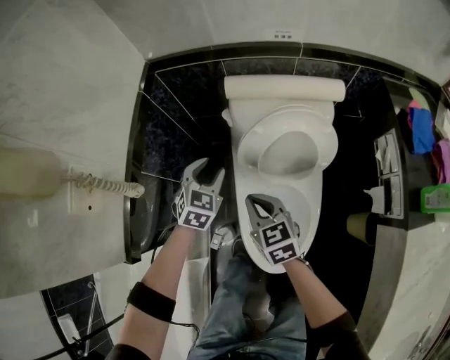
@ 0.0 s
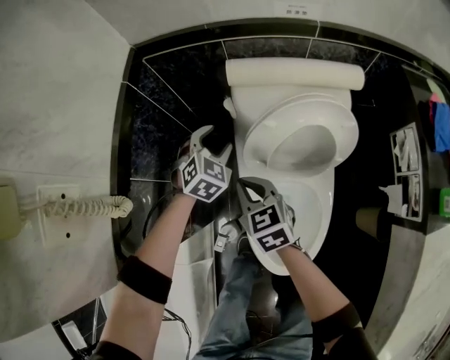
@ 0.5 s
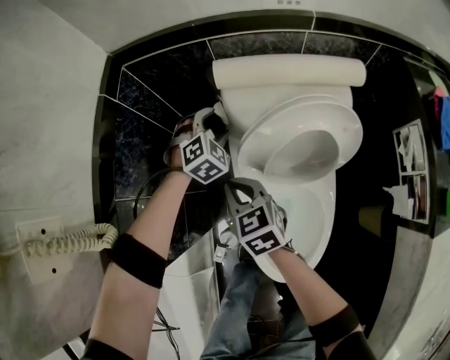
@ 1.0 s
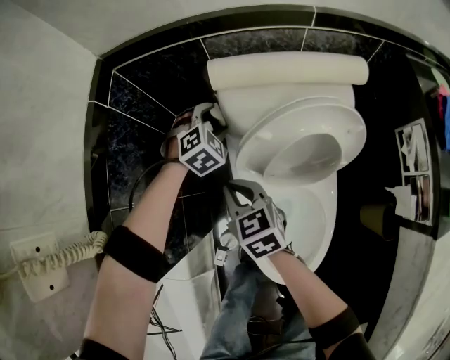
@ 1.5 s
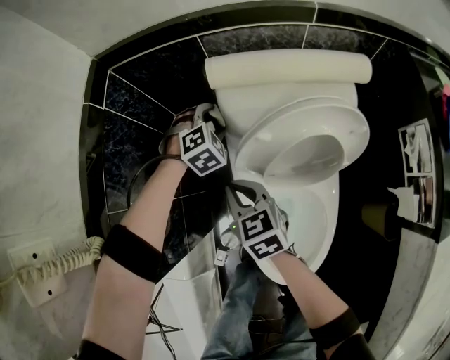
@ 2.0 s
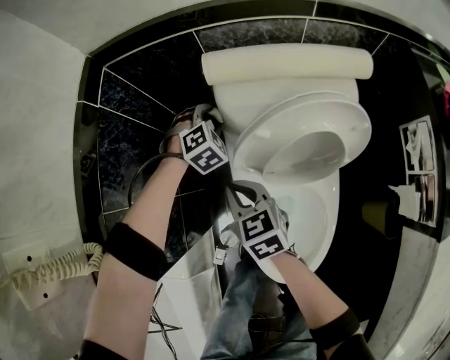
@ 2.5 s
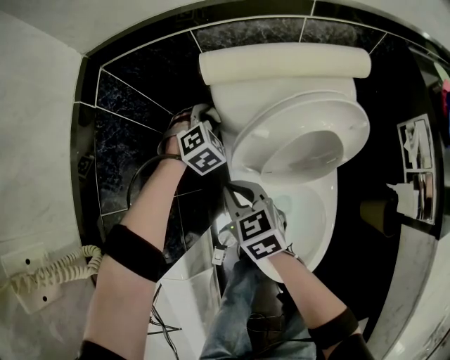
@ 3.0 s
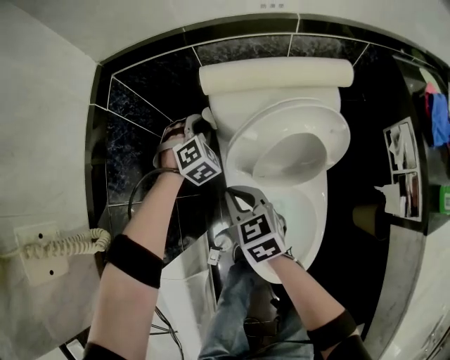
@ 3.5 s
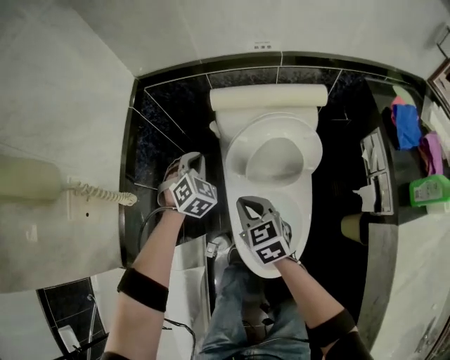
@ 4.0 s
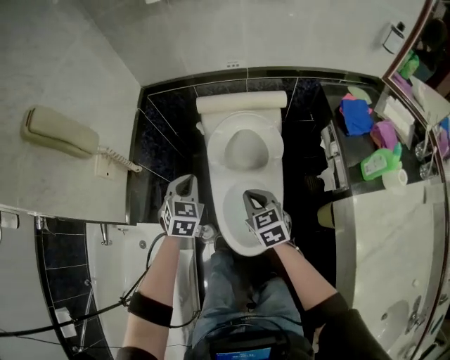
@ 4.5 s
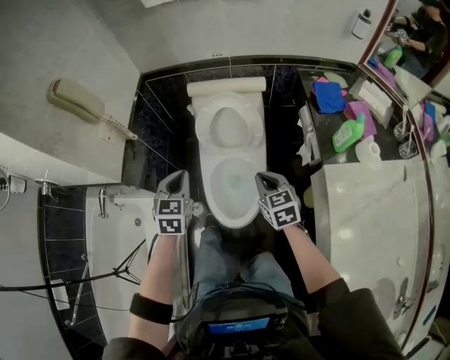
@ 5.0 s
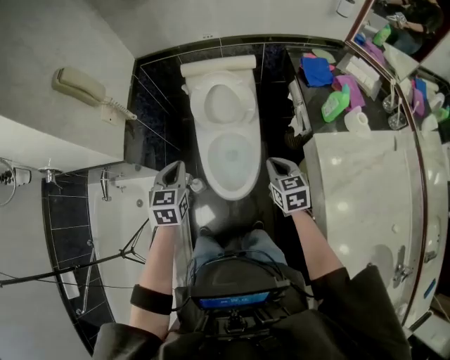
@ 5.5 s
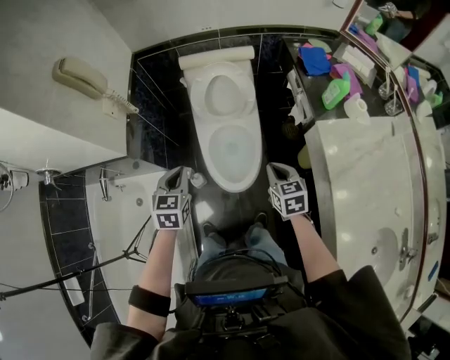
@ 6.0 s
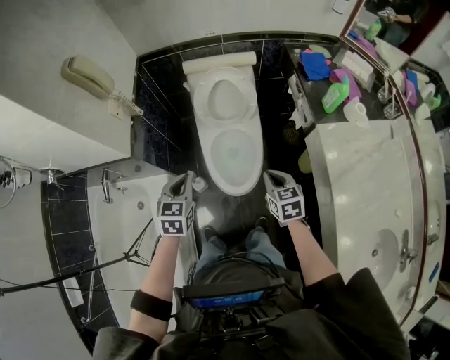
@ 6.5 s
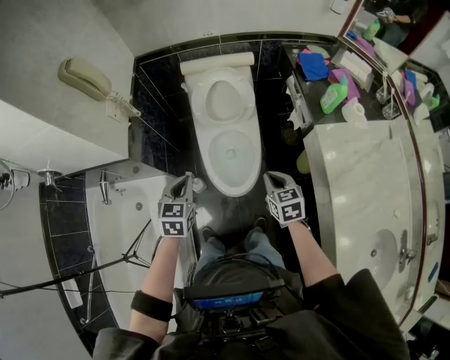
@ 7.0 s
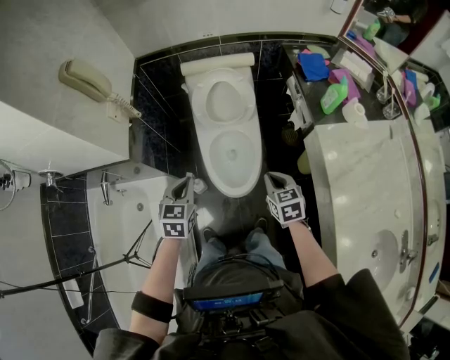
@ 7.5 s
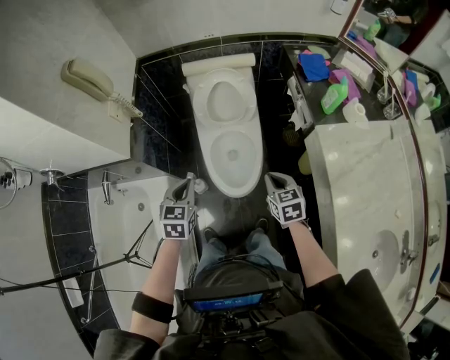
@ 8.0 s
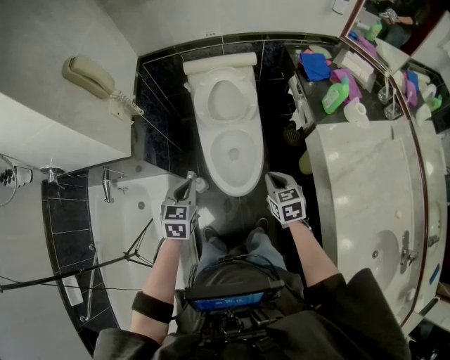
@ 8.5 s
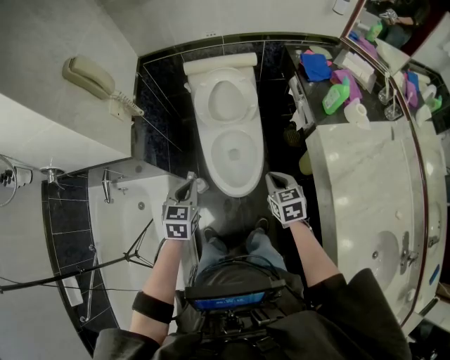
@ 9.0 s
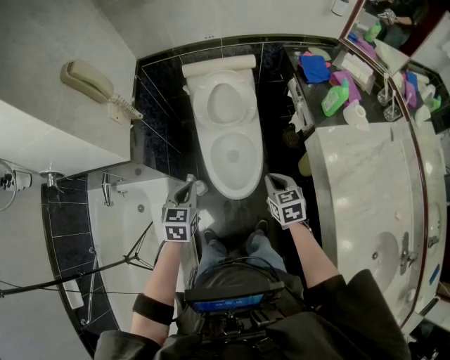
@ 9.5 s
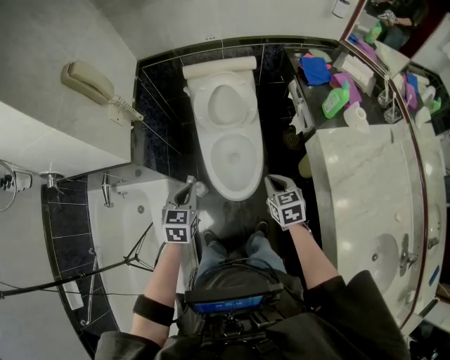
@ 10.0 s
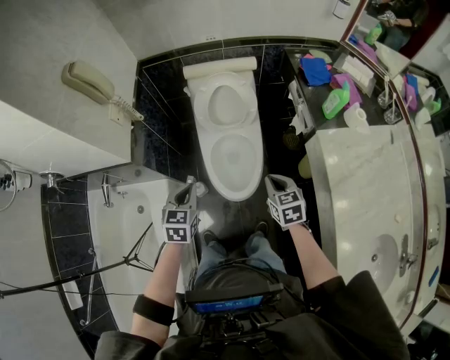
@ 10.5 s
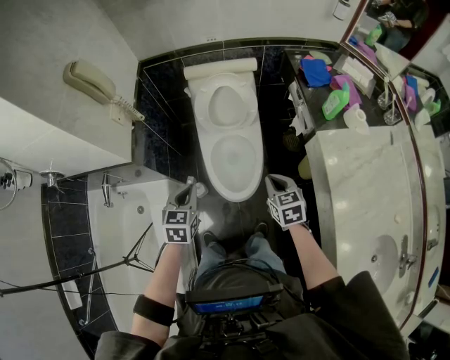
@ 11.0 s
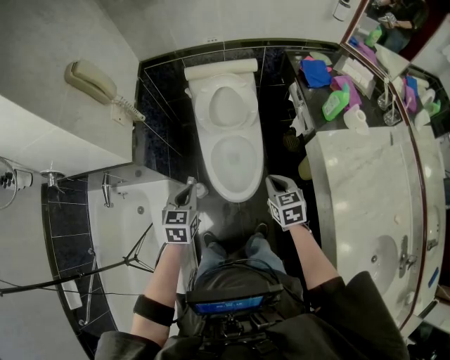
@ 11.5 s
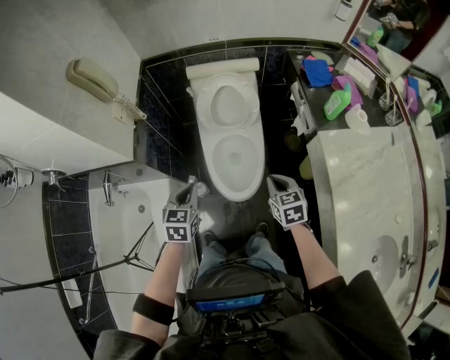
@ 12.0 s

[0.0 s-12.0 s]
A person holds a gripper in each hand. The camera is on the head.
0.0 to 2.0 s: The right gripper heads forward and downward, covering roughly 15 cm; the left gripper shifts about 25 cm forward and downward, and rotates roughly 40 degrees.
2.0 to 4.0 s: Both grippers travel together upward and backward, roughly 15 cm. The left gripper swivels roughly 20 degrees, and closes up.
4.0 to 6.0 s: The left gripper shifts about 50 cm backward and upward, and swivels roughly 40 degrees; the right gripper heads backward, to the right and upward, covering some 40 cm.
6.0 to 8.0 s: There are only small adjustments of the grippers.
8.0 to 10.0 s: Both grippers stay put.
10.0 to 12.0 s: Both grippers stay about where they are.

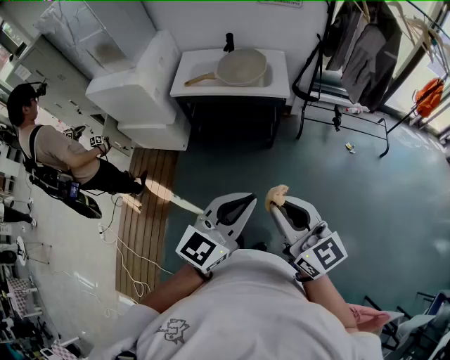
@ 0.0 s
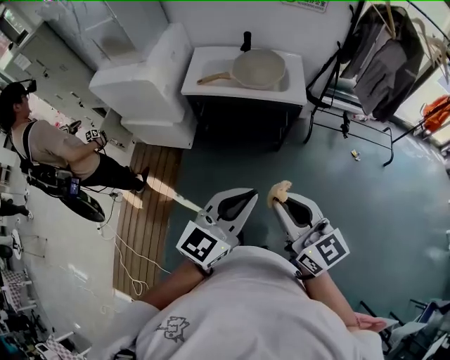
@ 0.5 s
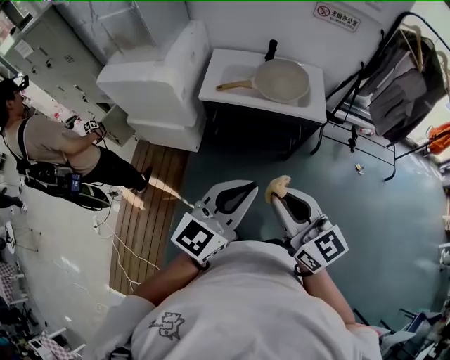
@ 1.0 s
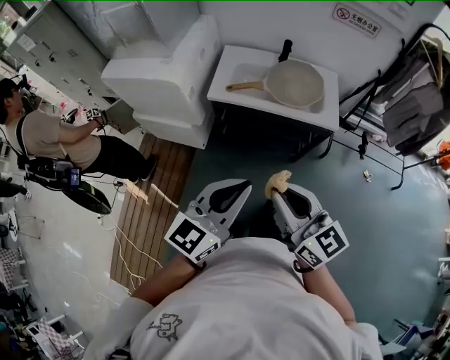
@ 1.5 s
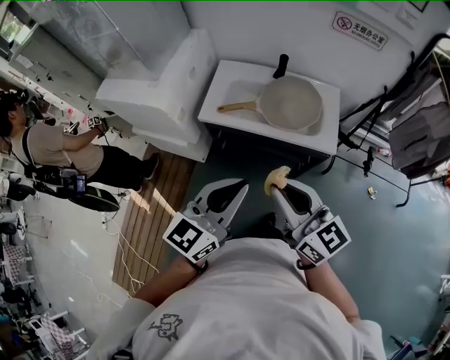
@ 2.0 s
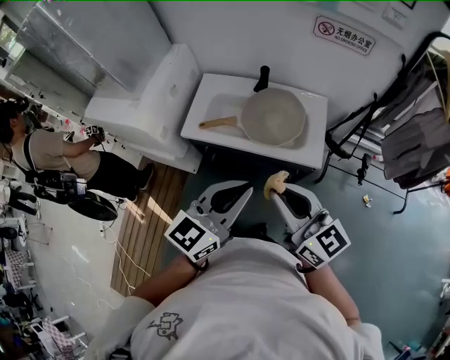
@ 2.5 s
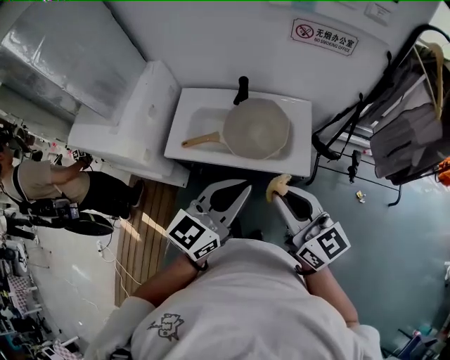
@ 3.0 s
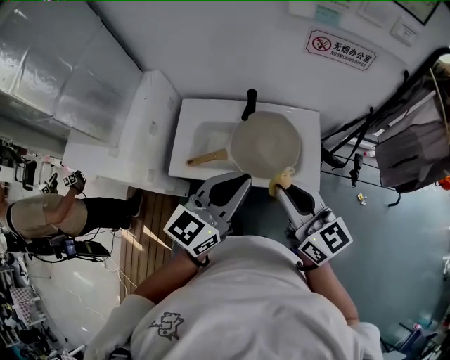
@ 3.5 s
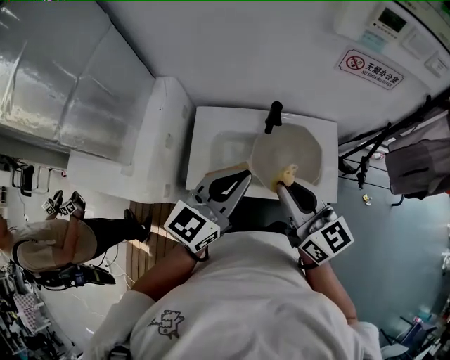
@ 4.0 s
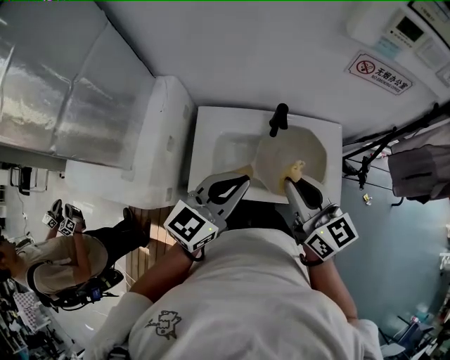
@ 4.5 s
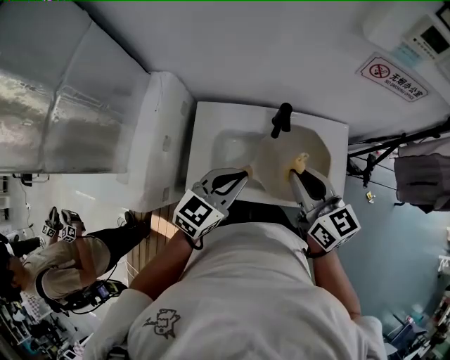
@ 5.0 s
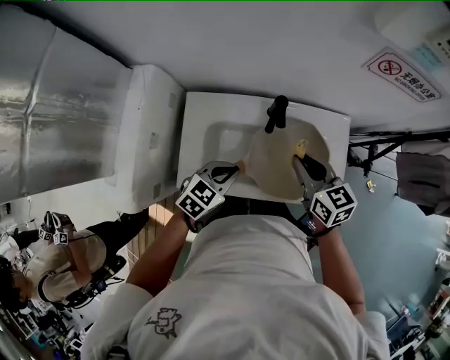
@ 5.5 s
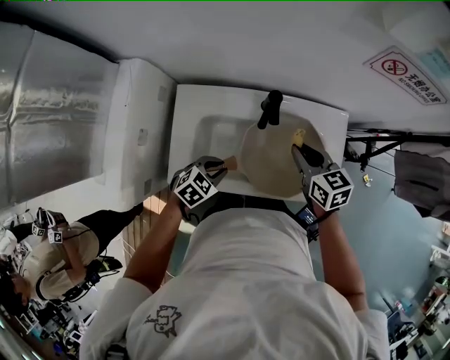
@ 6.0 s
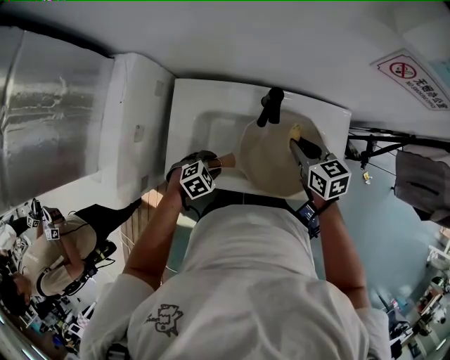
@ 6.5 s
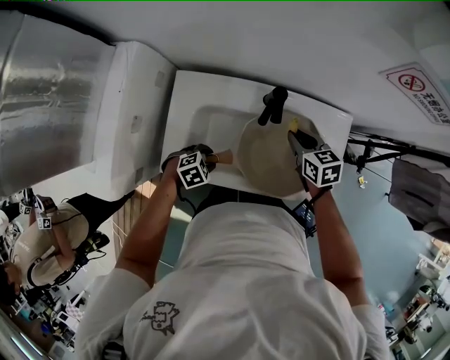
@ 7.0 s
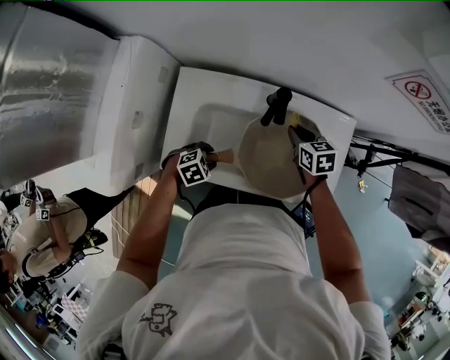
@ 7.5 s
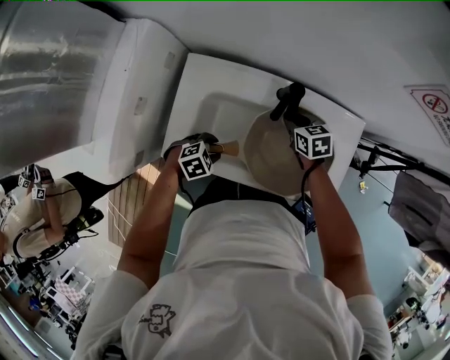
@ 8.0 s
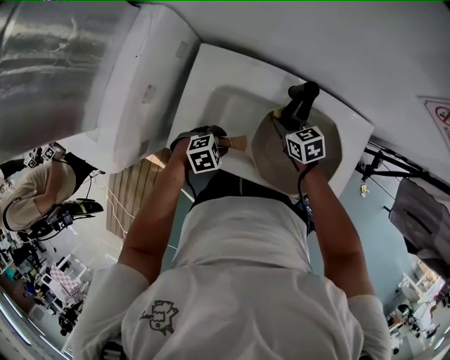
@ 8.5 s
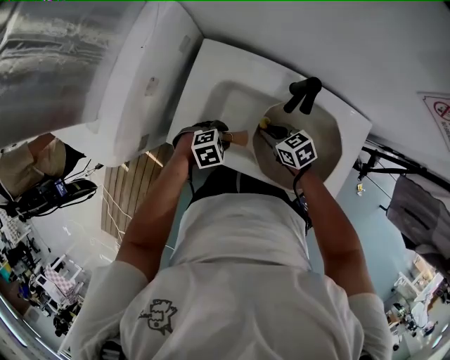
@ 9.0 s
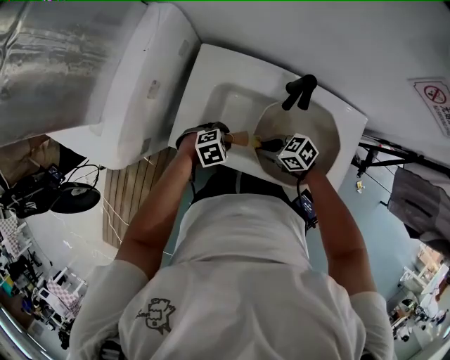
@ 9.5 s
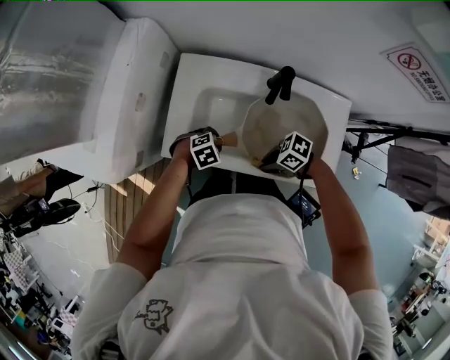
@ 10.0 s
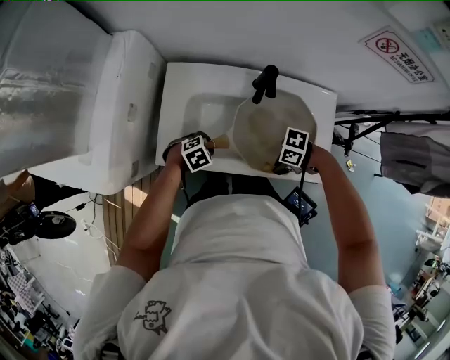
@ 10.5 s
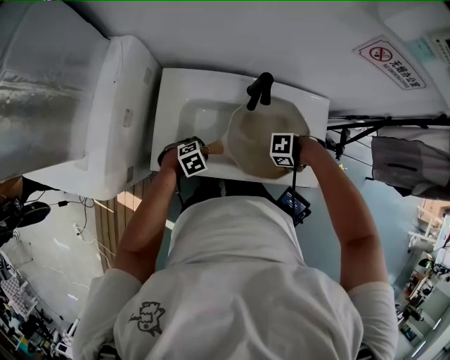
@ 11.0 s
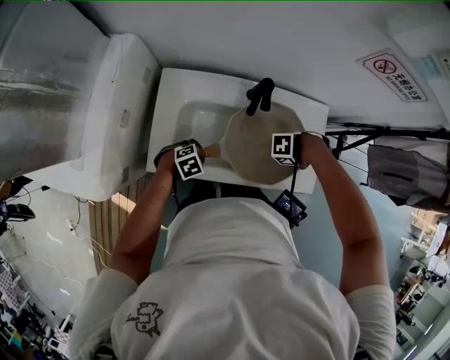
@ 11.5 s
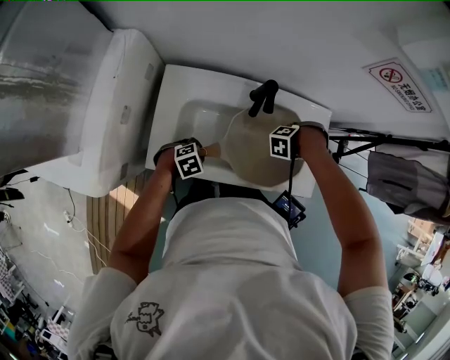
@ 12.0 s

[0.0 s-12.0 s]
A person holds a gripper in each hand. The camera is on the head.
0.0 to 2.0 s: The left gripper moves forward and to the left, some 40 cm, while the right gripper goes about 35 cm forward.
2.0 to 4.0 s: The grippers both shift forward by about 35 cm.
4.0 to 6.0 s: The left gripper travels downward by approximately 35 cm, and angles its fingers downward, by some 50 degrees. Meanwhile the right gripper moves downward and forward, approximately 30 cm, and tips its fingers downward by some 30 degrees.
6.0 to 8.0 s: The left gripper is displaced downward by approximately 10 cm, and opens its fingers. The right gripper shifts about 15 cm downward.
8.0 to 10.0 s: The right gripper changes place by approximately 25 cm, and swivels about 60 degrees.
10.0 to 12.0 s: The right gripper ends up roughly 25 cm from where it was, and rotates some 80 degrees.

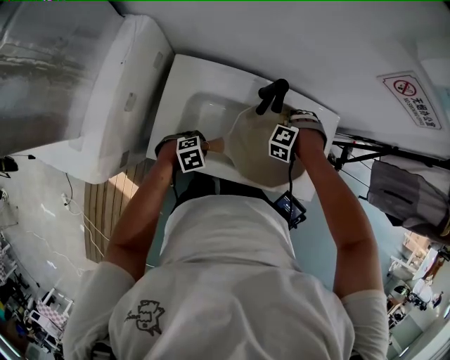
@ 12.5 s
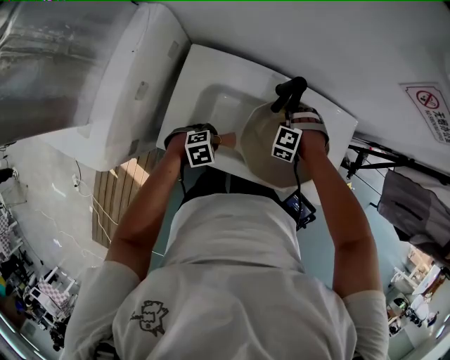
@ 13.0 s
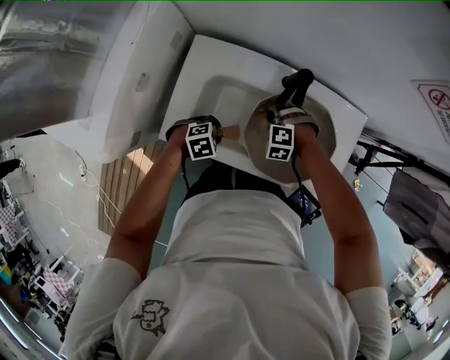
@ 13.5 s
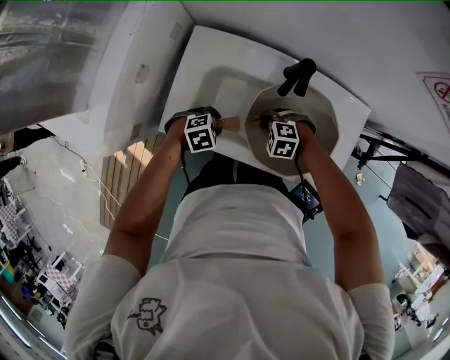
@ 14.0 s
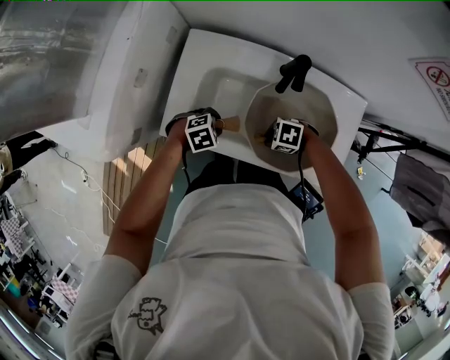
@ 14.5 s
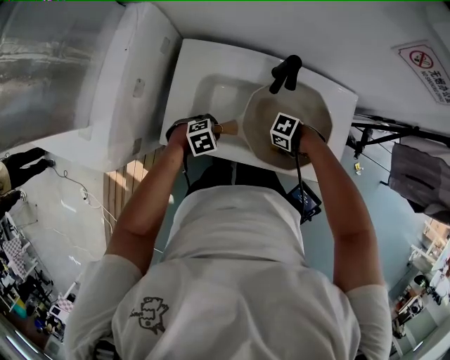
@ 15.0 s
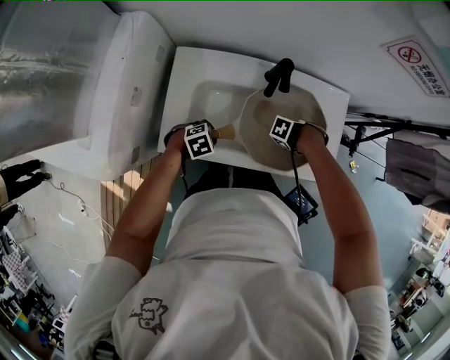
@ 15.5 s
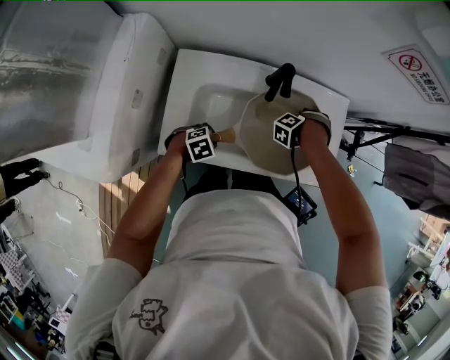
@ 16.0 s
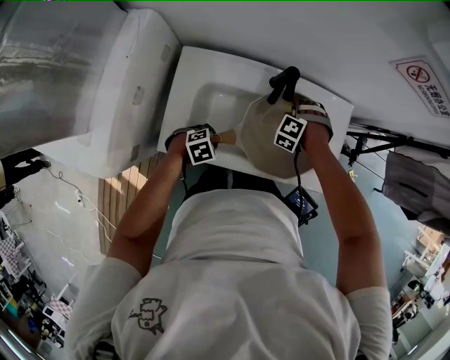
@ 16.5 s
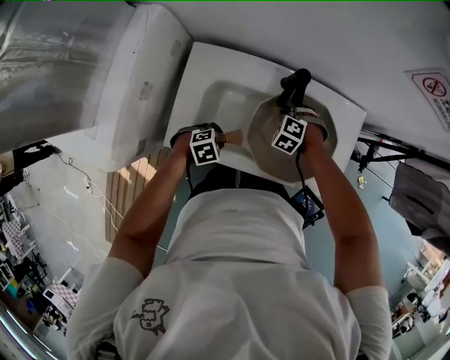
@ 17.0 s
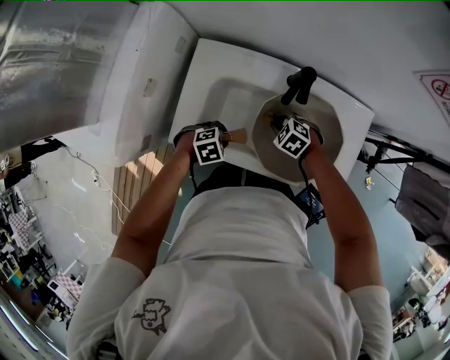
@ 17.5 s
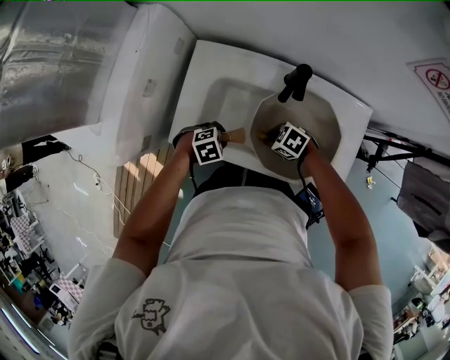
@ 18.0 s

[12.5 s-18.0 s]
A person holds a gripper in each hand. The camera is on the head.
12.5 to 14.5 s: The right gripper moves roughly 25 cm, and swivels about 70 degrees.
14.5 to 16.0 s: The right gripper ends up roughly 20 cm from where it was, and turns by roughly 60 degrees.
16.0 to 18.0 s: The right gripper moves roughly 20 cm, and changes its angle by approximately 70 degrees.
